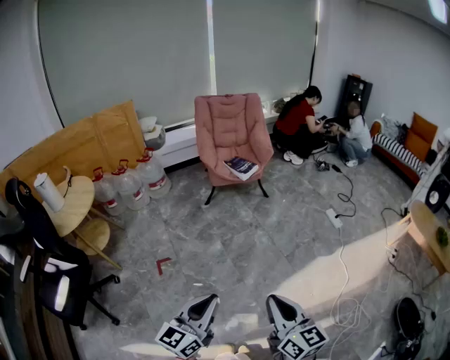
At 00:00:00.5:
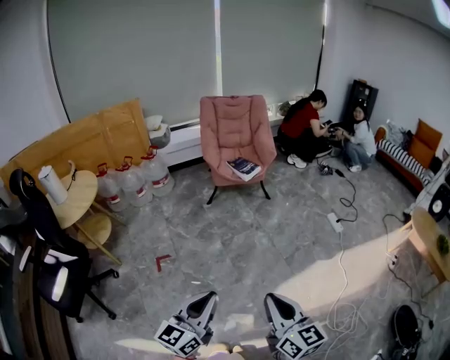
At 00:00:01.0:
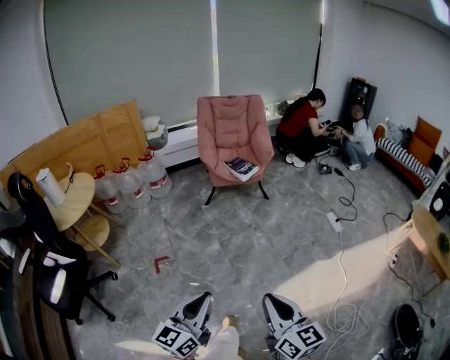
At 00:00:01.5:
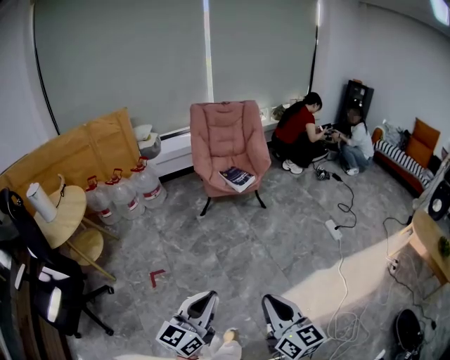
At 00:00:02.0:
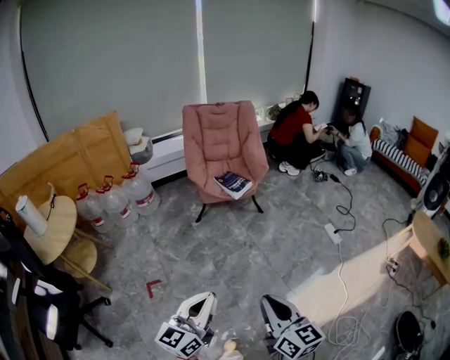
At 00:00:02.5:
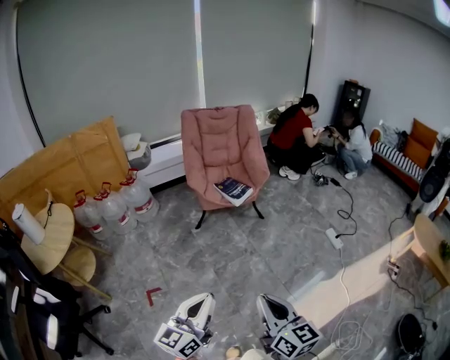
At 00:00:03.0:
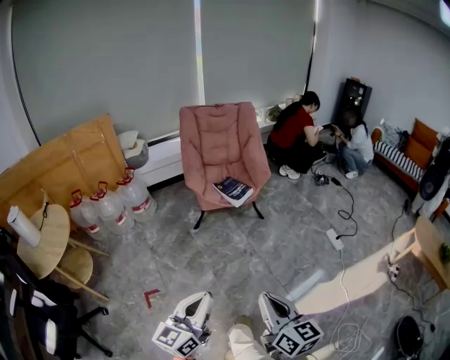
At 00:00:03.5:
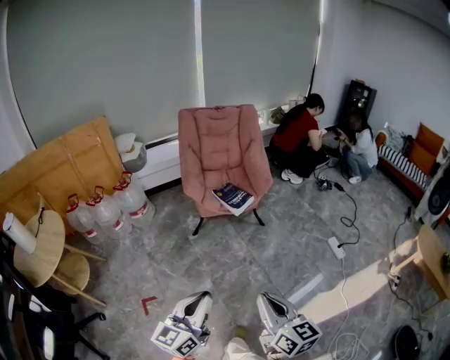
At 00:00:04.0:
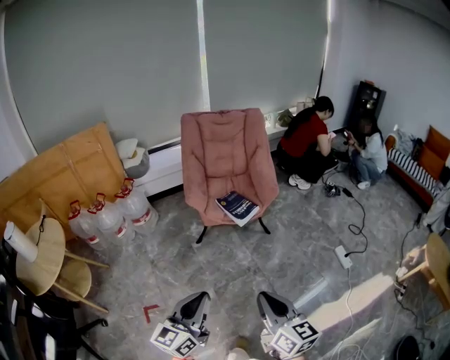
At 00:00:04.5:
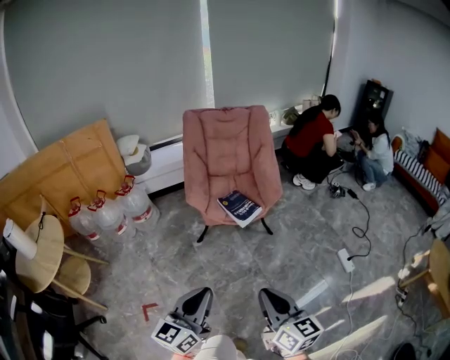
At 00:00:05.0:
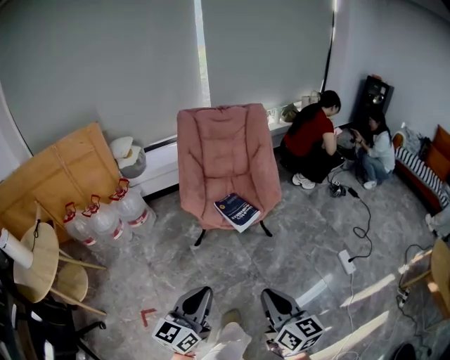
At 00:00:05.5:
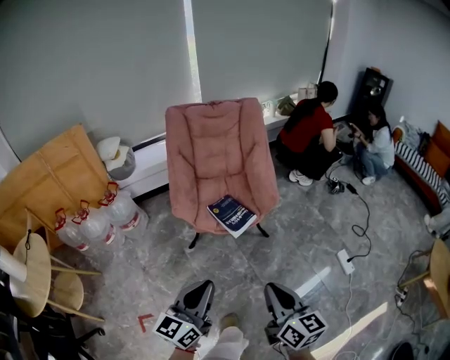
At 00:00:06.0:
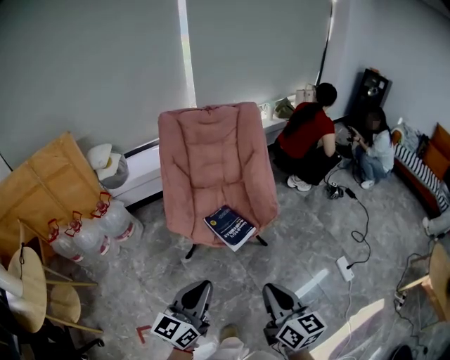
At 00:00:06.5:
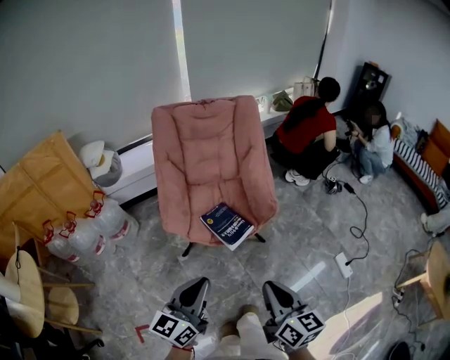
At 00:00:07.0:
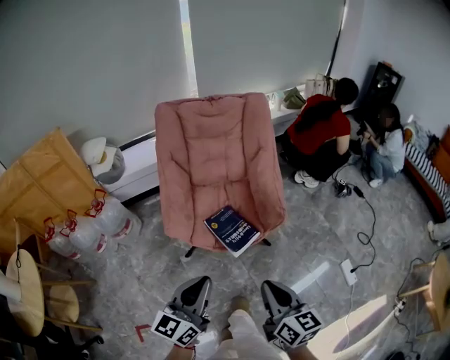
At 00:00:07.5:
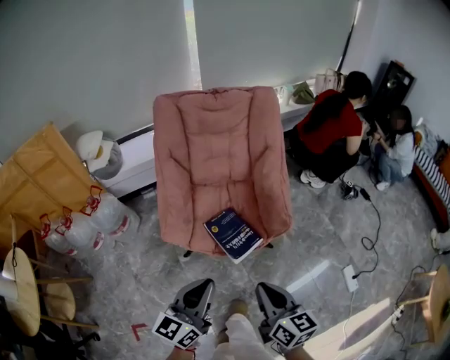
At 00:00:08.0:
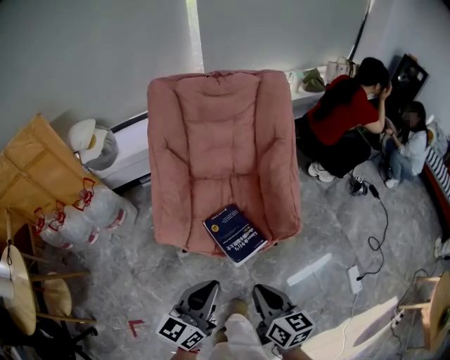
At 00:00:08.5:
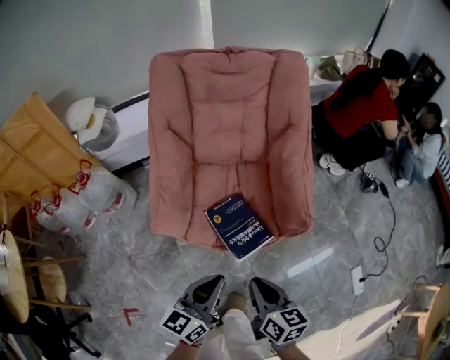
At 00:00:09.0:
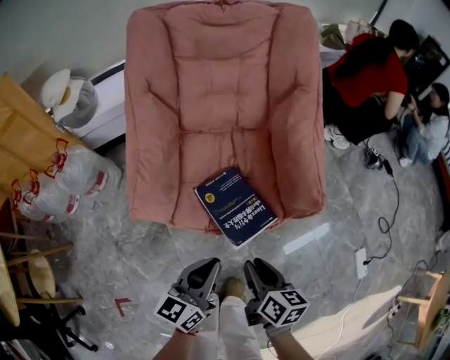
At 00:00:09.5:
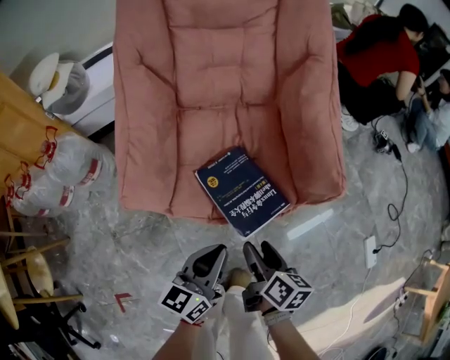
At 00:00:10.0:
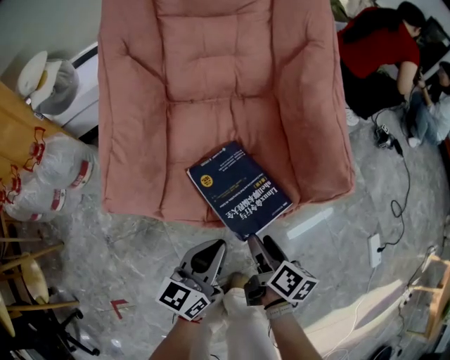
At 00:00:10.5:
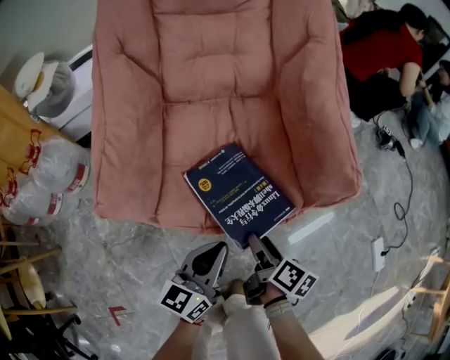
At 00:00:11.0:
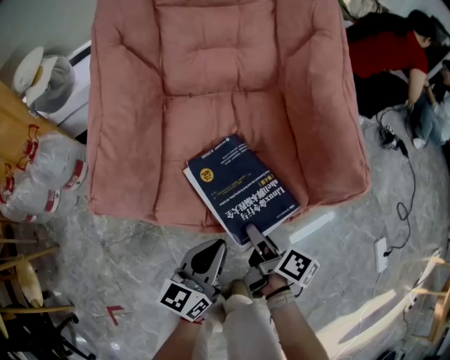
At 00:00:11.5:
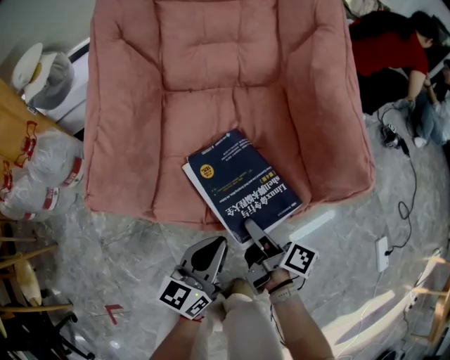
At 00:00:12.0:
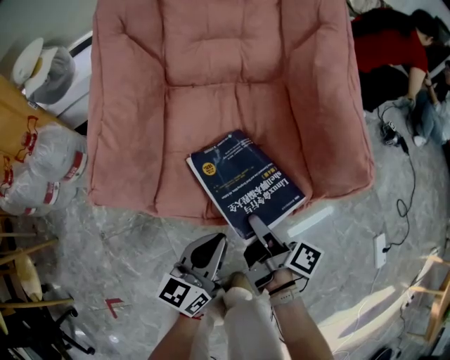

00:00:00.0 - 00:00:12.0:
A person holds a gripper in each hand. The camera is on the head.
00:00:00.0 - 00:00:02.0: The grippers both shift forward by approximately 15 cm.
00:00:02.0 - 00:00:04.0: The grippers both shift forward by approximately 25 cm.
00:00:04.0 - 00:00:06.0: The grippers both shift forward by about 25 cm.
00:00:06.0 - 00:00:08.0: Both grippers travel together forward and downward, roughly 20 cm.
00:00:08.0 - 00:00:10.0: The grippers both shift downward by roughly 30 cm. The right gripper changes its angle by some 30 degrees, and opens up.
00:00:10.0 - 00:00:12.0: The right gripper ends up about 5 cm from where it was, swivels some 30 degrees, and closes up.

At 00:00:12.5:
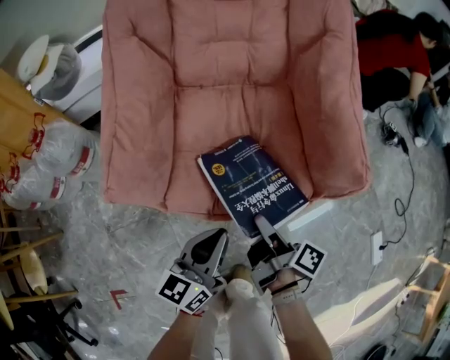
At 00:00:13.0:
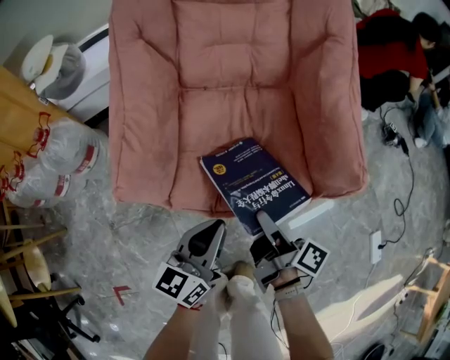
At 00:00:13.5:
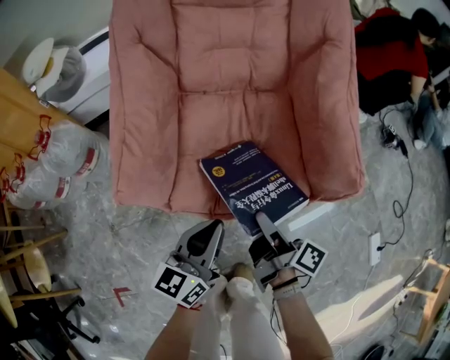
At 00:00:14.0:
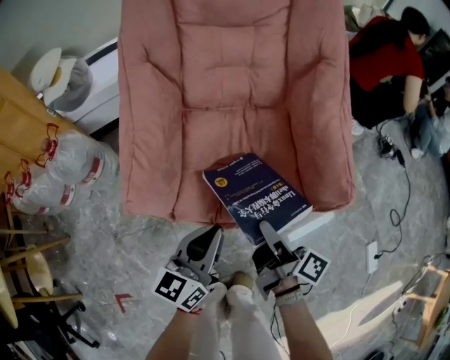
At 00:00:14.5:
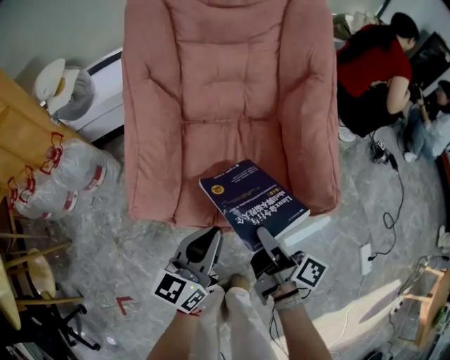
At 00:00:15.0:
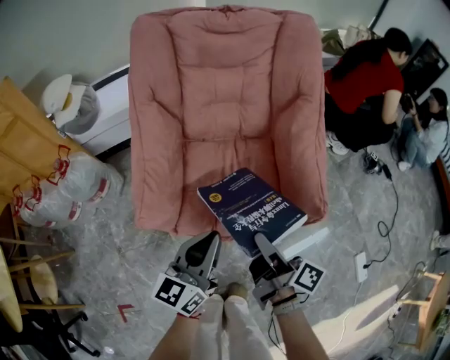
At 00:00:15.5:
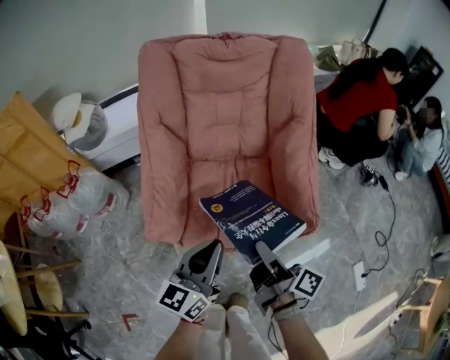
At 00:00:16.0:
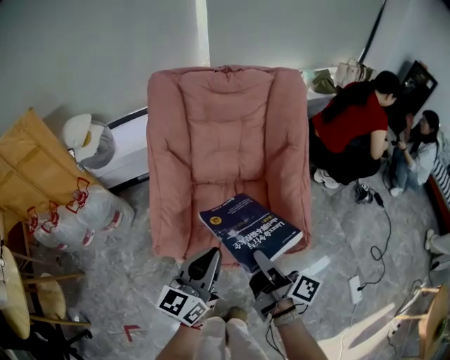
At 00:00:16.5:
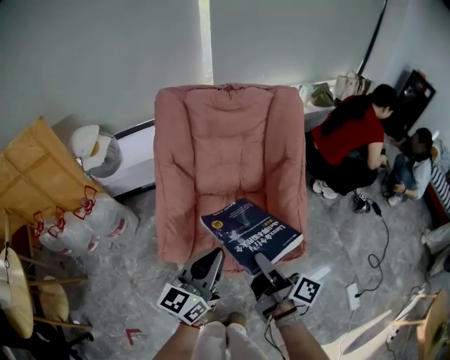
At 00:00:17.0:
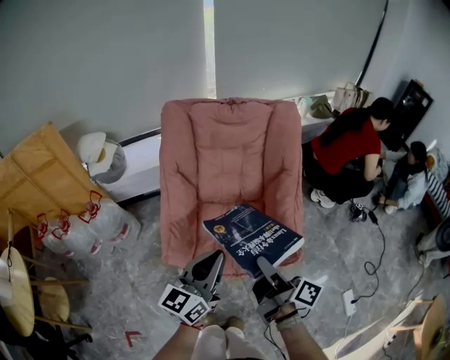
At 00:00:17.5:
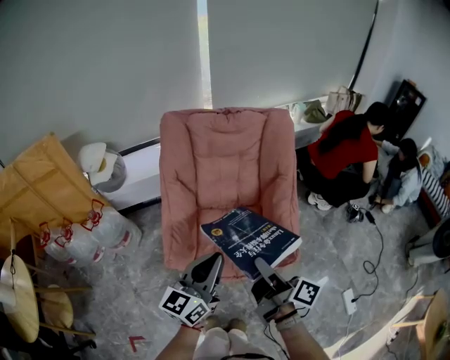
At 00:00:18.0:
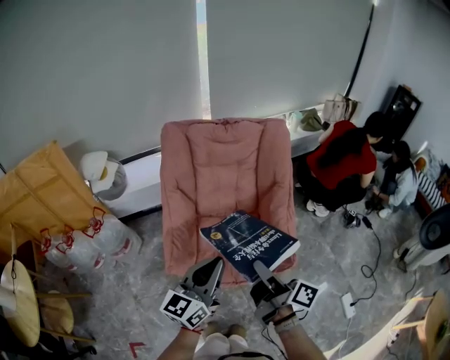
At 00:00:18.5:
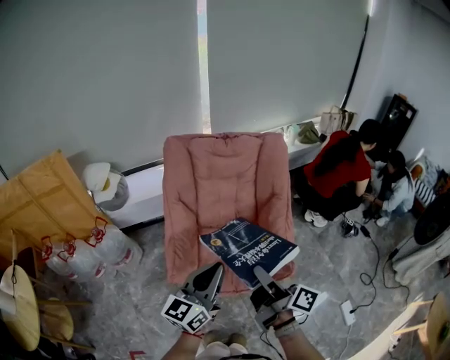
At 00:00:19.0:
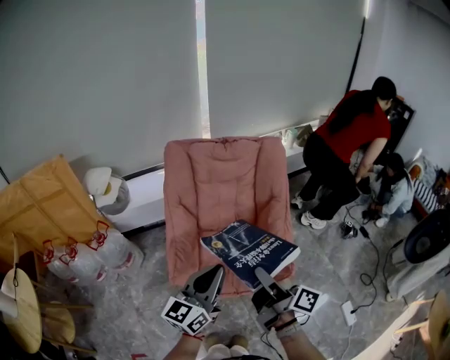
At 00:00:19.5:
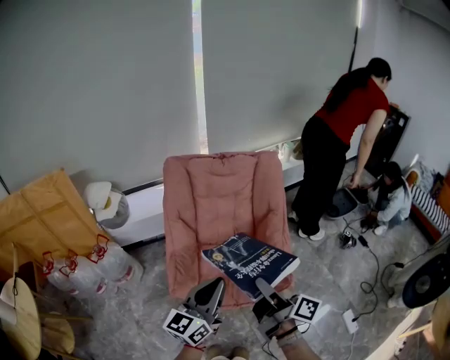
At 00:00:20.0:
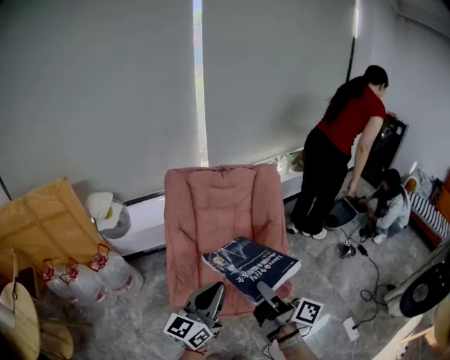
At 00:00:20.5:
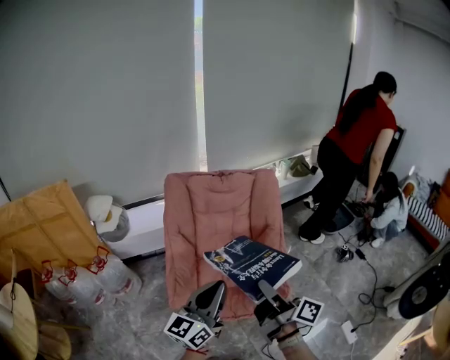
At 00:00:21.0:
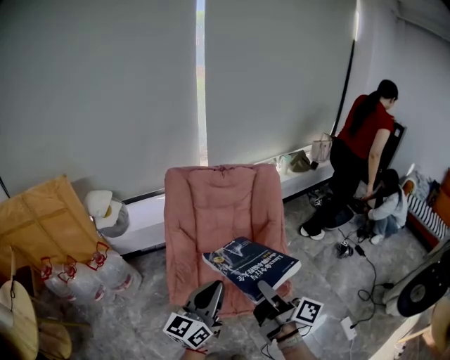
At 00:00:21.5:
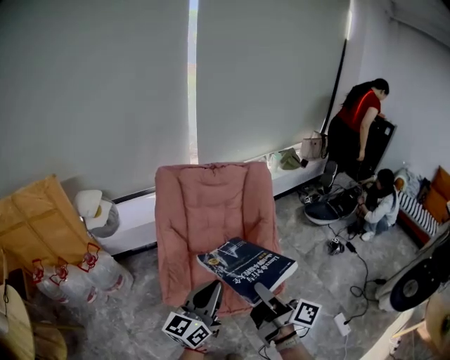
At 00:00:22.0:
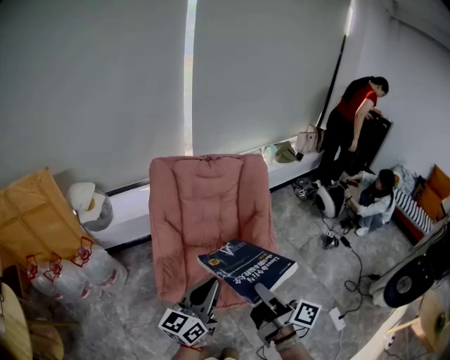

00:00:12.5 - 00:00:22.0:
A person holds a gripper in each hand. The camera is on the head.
00:00:12.5 - 00:00:14.5: The grippers both shift upward by approximately 10 cm.
00:00:14.5 - 00:00:16.5: Both grippers travel together upward, roughly 20 cm.
00:00:16.5 - 00:00:18.0: The two grippers go about 10 cm upward.
00:00:18.0 - 00:00:20.0: The two grippers go some 5 cm upward.
00:00:20.0 - 00:00:22.0: The grippers move only a little.

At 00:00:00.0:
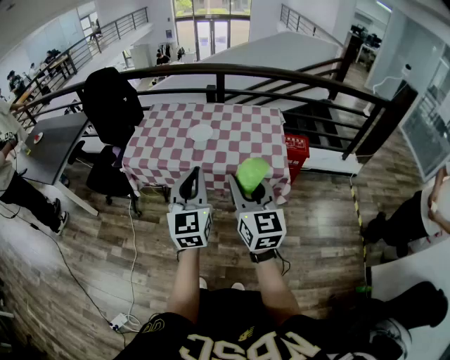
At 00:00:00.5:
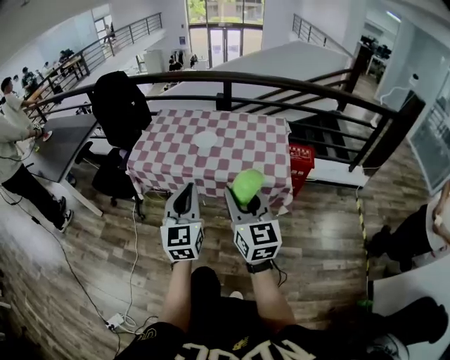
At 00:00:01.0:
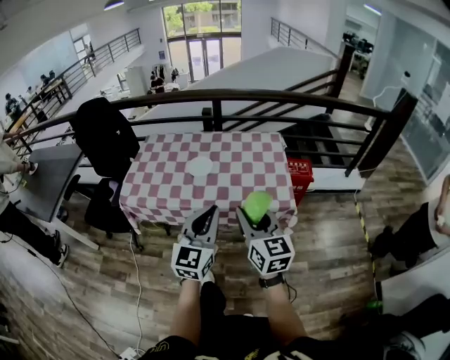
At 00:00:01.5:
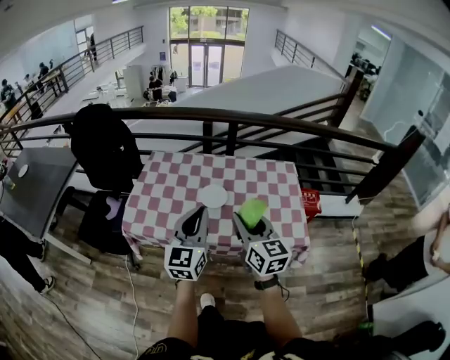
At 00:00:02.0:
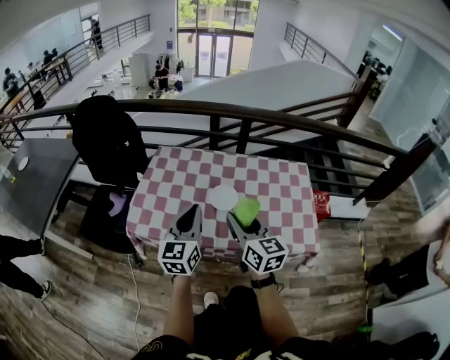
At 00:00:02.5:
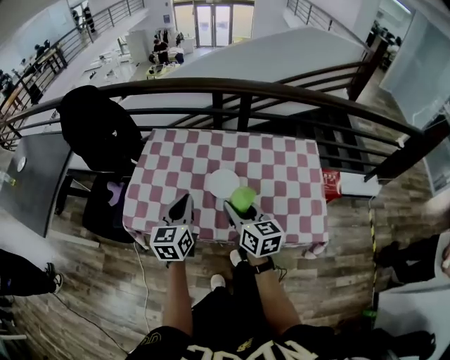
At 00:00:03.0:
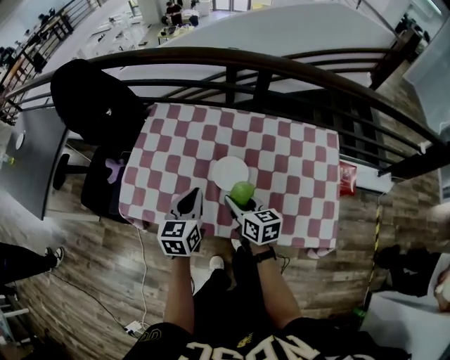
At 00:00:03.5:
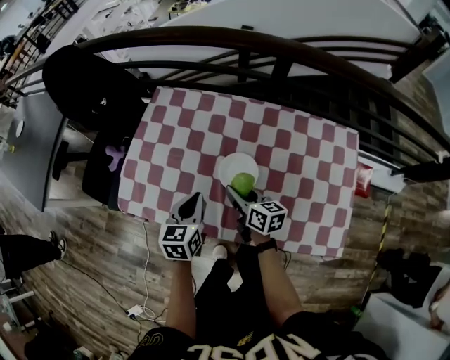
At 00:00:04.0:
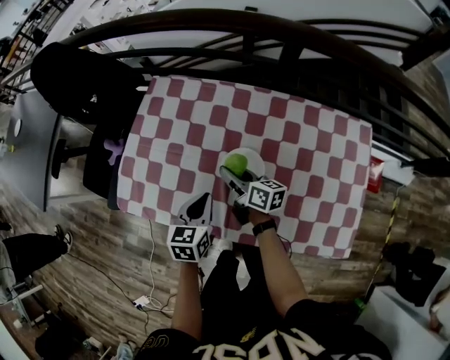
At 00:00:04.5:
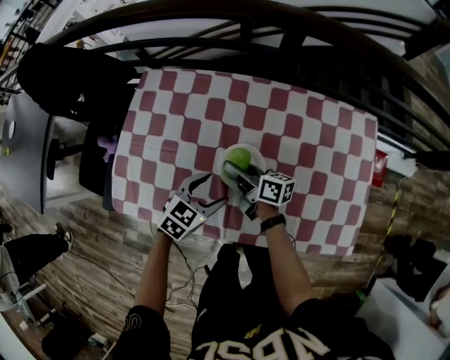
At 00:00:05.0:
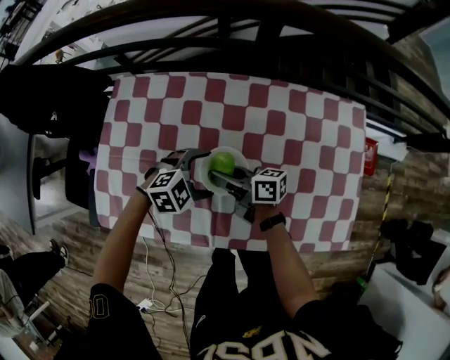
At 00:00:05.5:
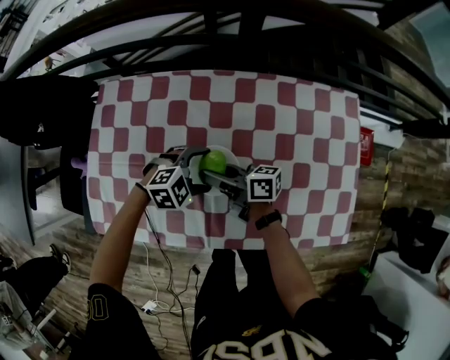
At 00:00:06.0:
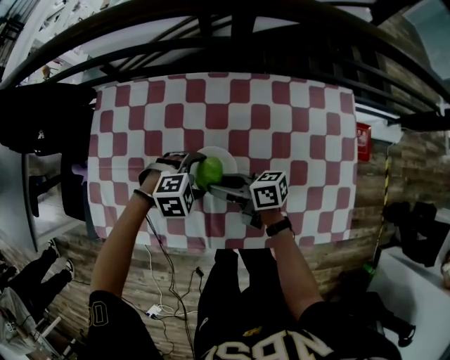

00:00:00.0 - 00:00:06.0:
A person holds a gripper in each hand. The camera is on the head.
00:00:00.0 - 00:00:02.0: The grippers both shift forward and to the left by some 35 cm.
00:00:02.0 - 00:00:04.0: The grippers both shift downward and forward by about 35 cm. The right gripper turns by some 50 degrees. Meanwhile the left gripper points its fingers roughly 40 degrees further downward.
00:00:04.0 - 00:00:06.0: The right gripper moves some 5 cm. Meanwhile the left gripper shifts by some 15 cm, twists about 80 degrees clockwise, seen from behind, and opens.
